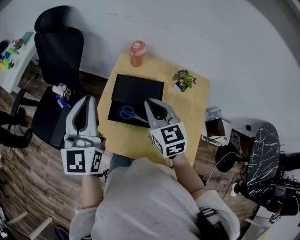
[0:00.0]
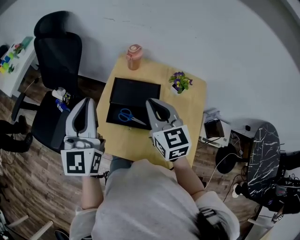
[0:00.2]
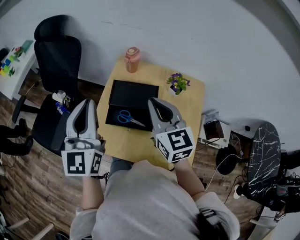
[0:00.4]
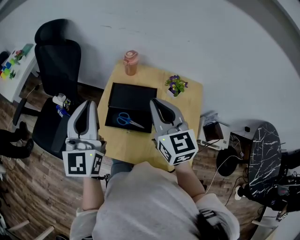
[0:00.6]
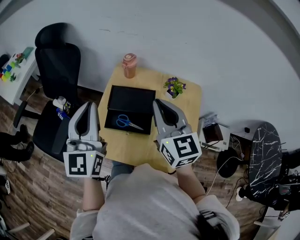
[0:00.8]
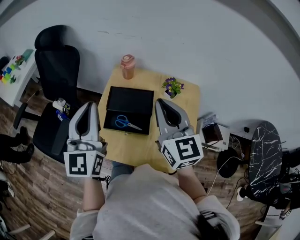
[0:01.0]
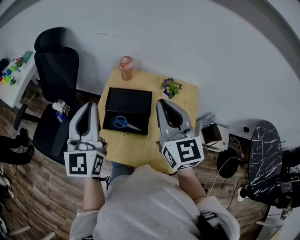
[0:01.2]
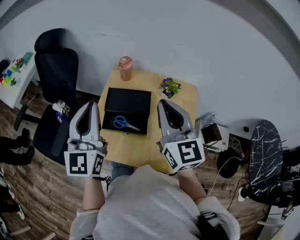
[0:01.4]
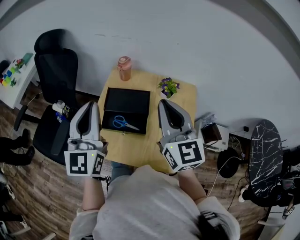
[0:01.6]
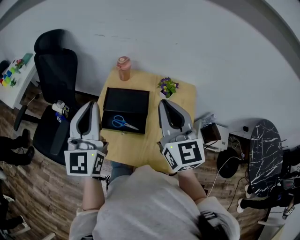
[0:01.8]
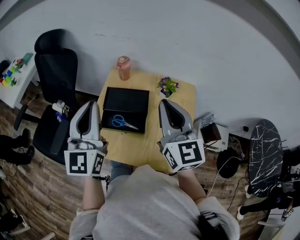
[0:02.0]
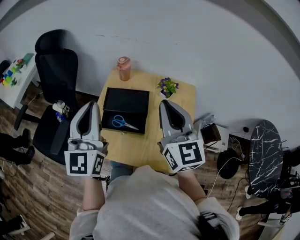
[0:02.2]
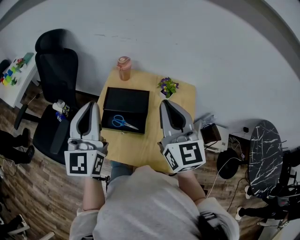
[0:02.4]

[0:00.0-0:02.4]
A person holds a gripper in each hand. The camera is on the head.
0.0 to 1.2 s: The left gripper shifts by roughly 5 cm, while the right gripper shifts roughly 15 cm upward, to the right and backward, and swivels approximately 20 degrees.
1.2 to 2.4 s: There are only small adjustments of the grippers.

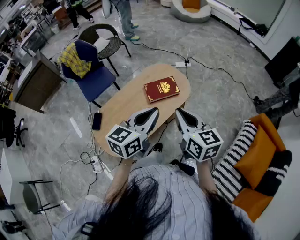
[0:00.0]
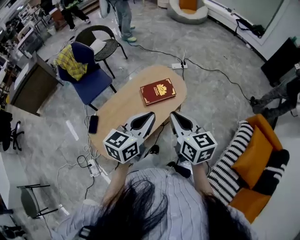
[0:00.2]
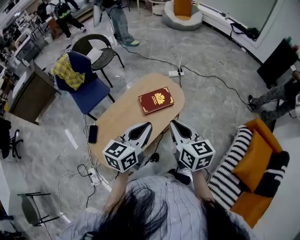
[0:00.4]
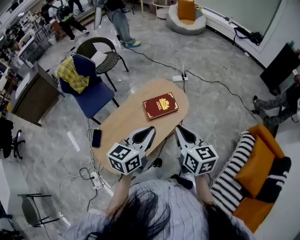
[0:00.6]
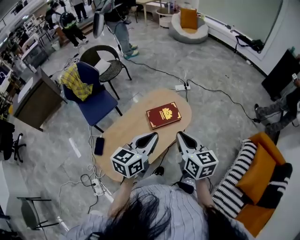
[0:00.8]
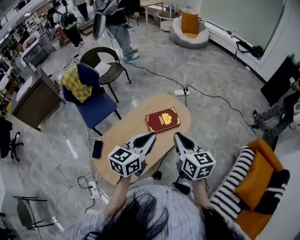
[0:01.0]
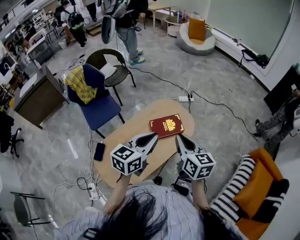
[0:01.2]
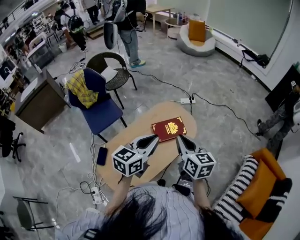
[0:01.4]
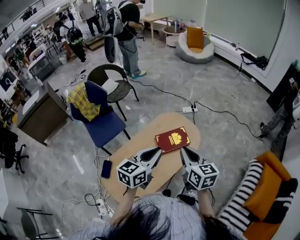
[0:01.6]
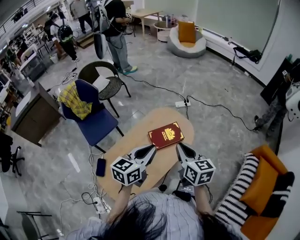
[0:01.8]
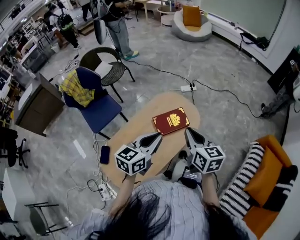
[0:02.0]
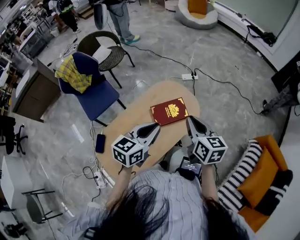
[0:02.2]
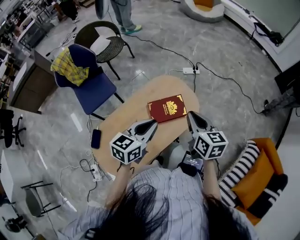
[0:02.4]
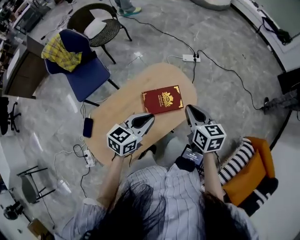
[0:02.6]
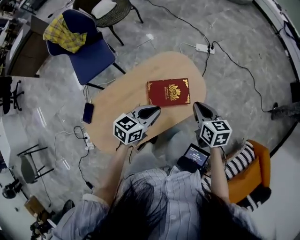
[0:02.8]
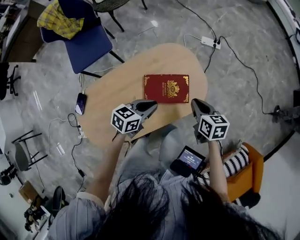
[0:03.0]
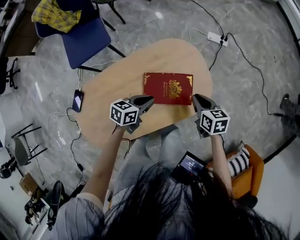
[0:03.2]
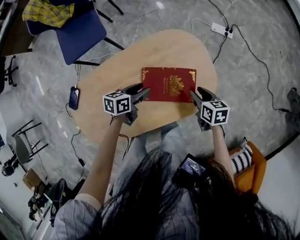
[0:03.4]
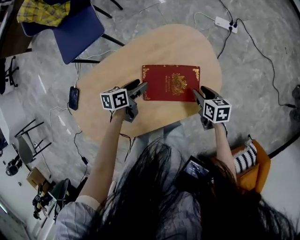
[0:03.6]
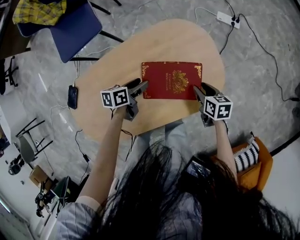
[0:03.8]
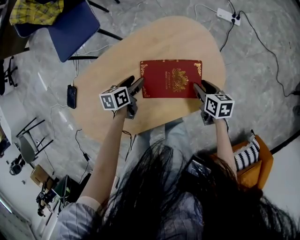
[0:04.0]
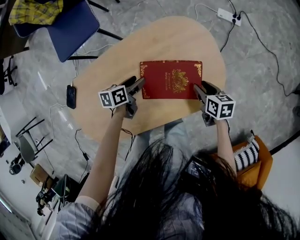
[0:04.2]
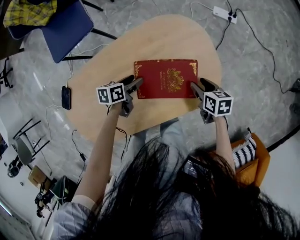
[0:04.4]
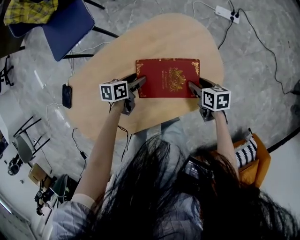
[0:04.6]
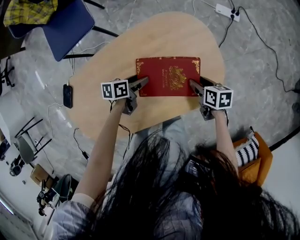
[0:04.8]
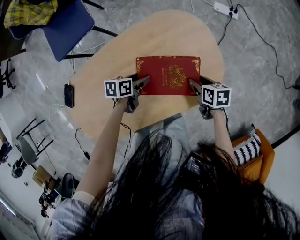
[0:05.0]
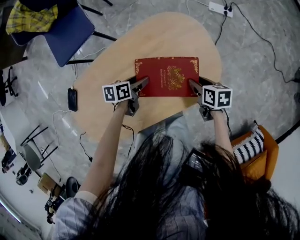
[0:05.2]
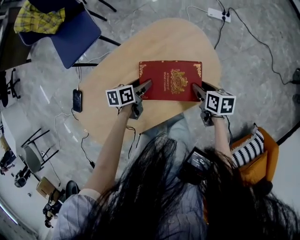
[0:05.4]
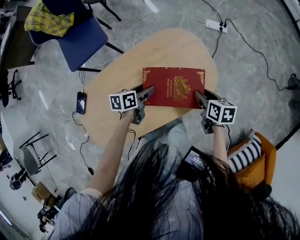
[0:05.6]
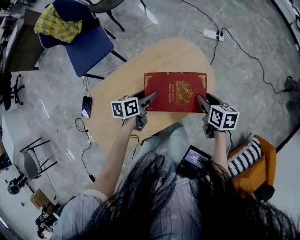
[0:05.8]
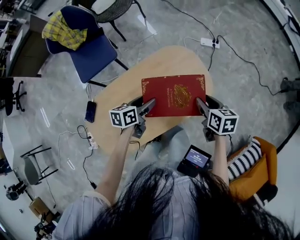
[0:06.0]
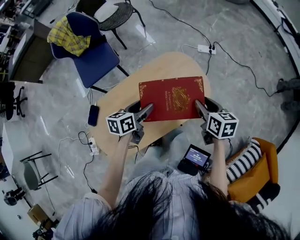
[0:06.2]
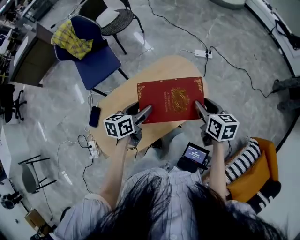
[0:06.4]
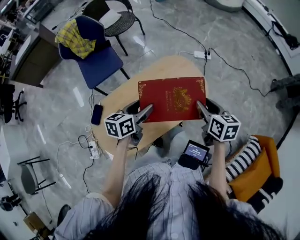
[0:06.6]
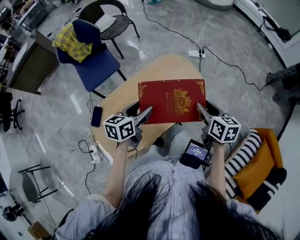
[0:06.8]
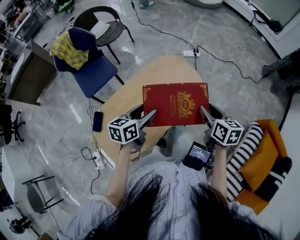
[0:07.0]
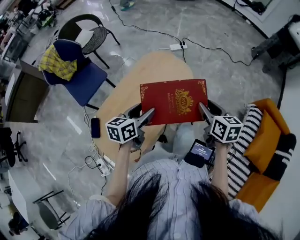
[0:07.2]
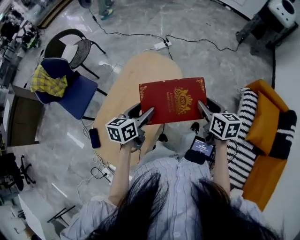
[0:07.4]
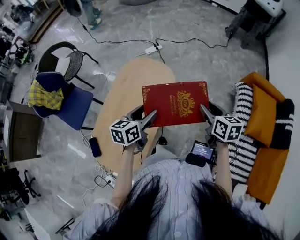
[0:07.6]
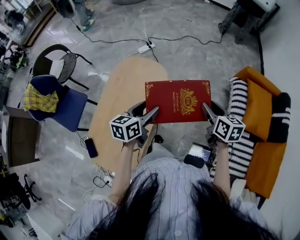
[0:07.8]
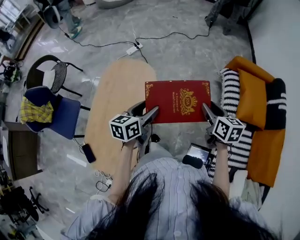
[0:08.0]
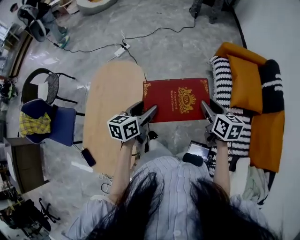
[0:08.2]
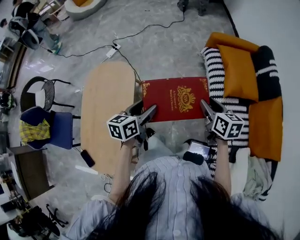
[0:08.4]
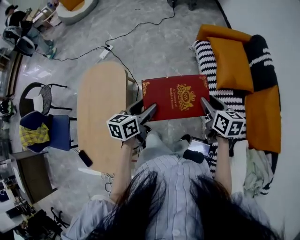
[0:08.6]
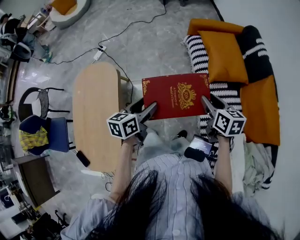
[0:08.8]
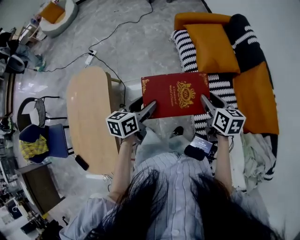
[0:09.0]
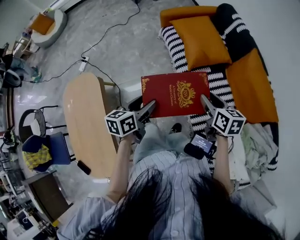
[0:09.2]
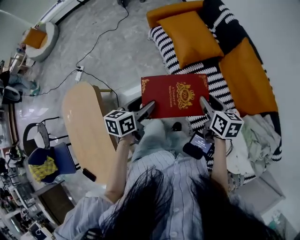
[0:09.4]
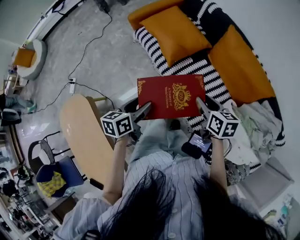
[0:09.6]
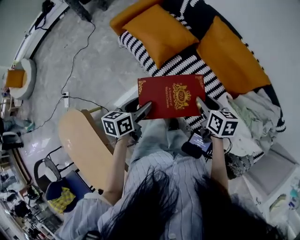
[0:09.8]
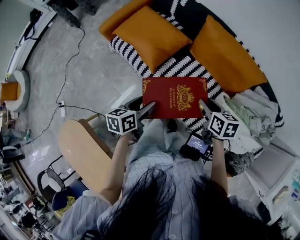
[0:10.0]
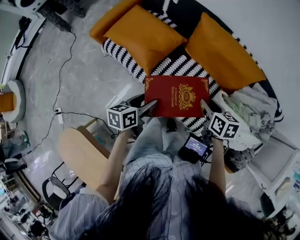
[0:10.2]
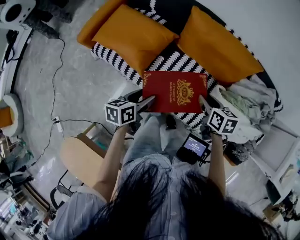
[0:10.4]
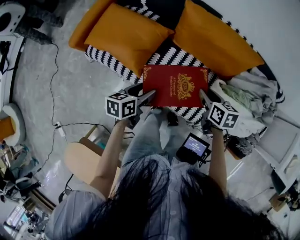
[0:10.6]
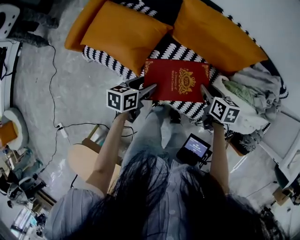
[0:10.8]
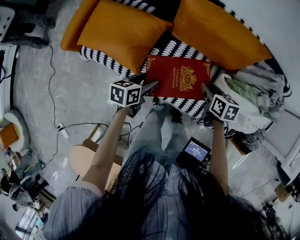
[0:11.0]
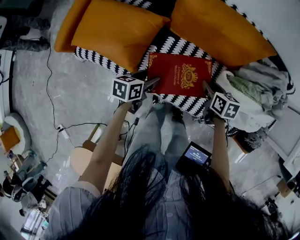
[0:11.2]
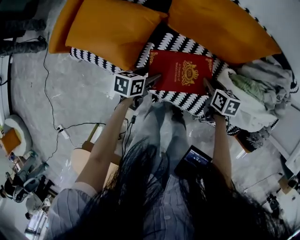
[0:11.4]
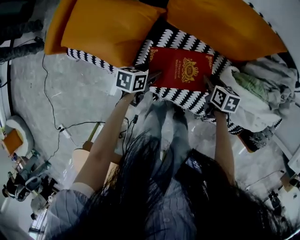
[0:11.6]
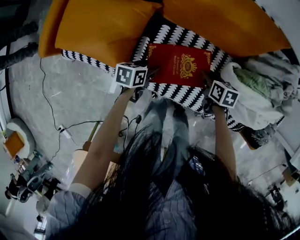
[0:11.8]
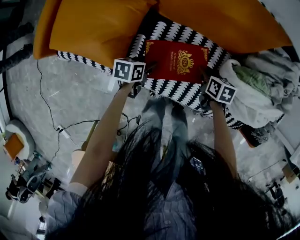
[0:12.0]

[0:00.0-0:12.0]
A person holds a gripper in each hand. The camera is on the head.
0.0 to 1.6 s: The two grippers go some 15 cm forward and to the left.
1.6 to 3.0 s: Both grippers move downward and forward, some 35 cm. The left gripper changes its angle by about 30 degrees, while the right gripper changes its angle by approximately 40 degrees.
3.0 to 4.4 s: The grippers both shift downward by approximately 25 cm. The left gripper swivels approximately 40 degrees, and opens its fingers; the right gripper opens up.
4.4 to 6.0 s: The two grippers go approximately 25 cm upward.
6.0 to 7.6 s: The right gripper changes place by some 35 cm, and rotates roughly 40 degrees, while the left gripper changes place by some 25 cm, and swivels some 40 degrees.
7.6 to 9.0 s: Both grippers are carried approximately 40 cm. The right gripper swivels some 30 degrees, while the left gripper rotates approximately 30 degrees.
9.0 to 10.4 s: The right gripper shifts by approximately 25 cm, and changes its angle by approximately 50 degrees. Meanwhile the left gripper shifts by approximately 35 cm, and turns by roughly 50 degrees.
10.4 to 12.0 s: The left gripper shifts approximately 30 cm downward and forward, and changes its angle by about 30 degrees, while the right gripper is displaced downward by approximately 25 cm, and rotates some 20 degrees.

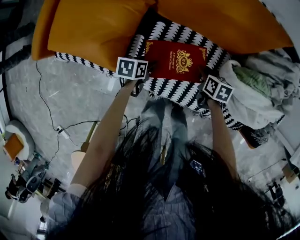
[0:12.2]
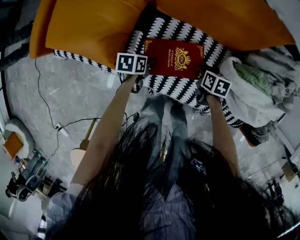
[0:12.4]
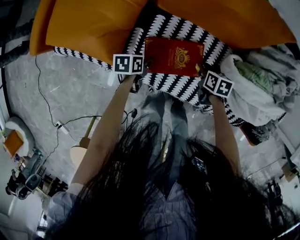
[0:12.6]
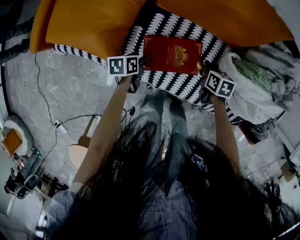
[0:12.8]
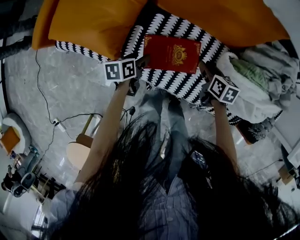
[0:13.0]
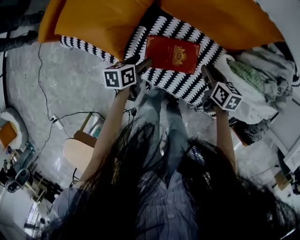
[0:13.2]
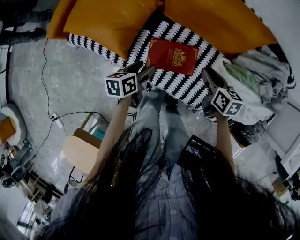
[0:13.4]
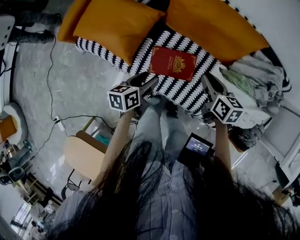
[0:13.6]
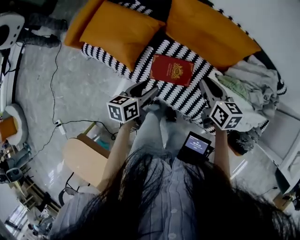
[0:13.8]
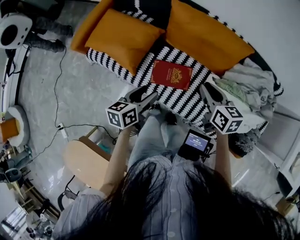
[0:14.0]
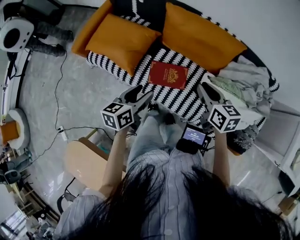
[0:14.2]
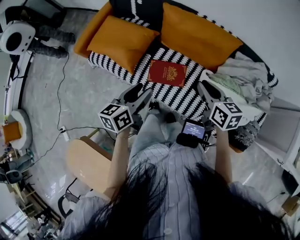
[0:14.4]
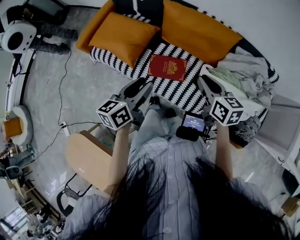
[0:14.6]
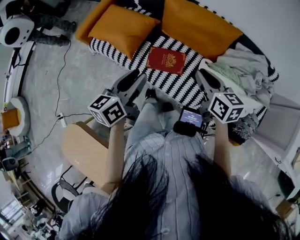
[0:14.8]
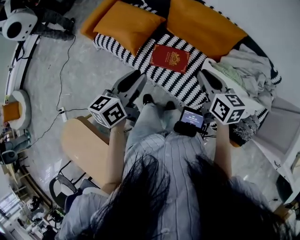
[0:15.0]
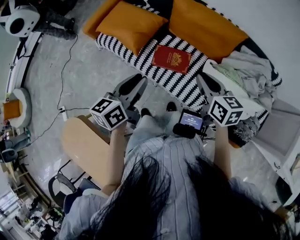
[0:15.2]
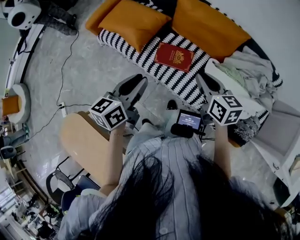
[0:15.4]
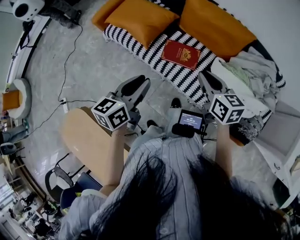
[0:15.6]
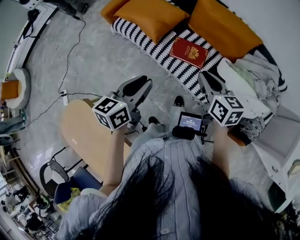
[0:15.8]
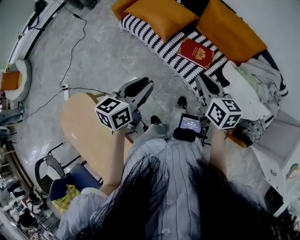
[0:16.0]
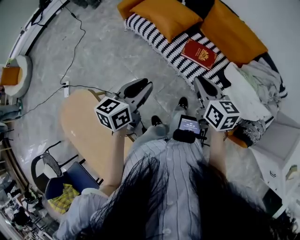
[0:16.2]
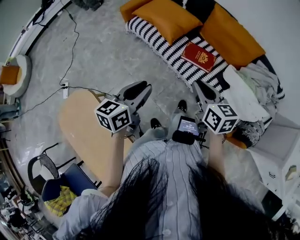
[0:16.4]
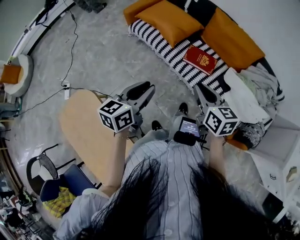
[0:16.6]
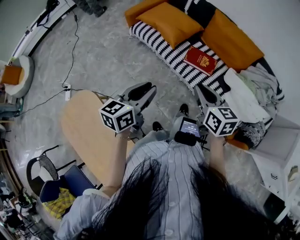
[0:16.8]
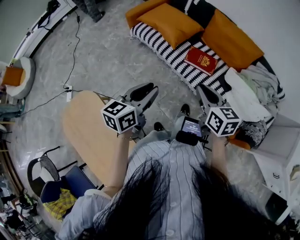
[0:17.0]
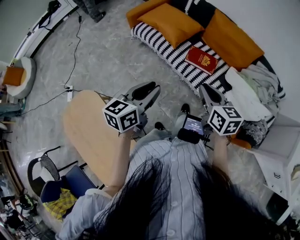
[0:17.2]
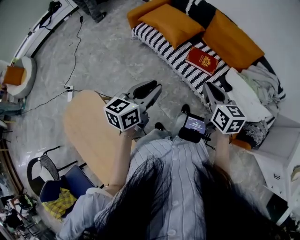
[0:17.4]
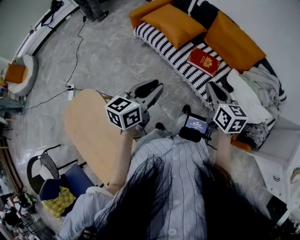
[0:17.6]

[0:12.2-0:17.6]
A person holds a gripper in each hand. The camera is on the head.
12.2 to 13.6 s: Both grippers travel together upward, some 25 cm. The left gripper swivels about 30 degrees; the right gripper swivels approximately 30 degrees.
13.6 to 15.0 s: The grippers both shift upward and backward by about 25 cm. The left gripper changes its angle by about 30 degrees, and closes.
15.0 to 16.2 s: The left gripper goes some 25 cm backward and to the left. The right gripper goes roughly 25 cm to the left and backward.
16.2 to 17.6 s: Both grippers move backward, some 5 cm.

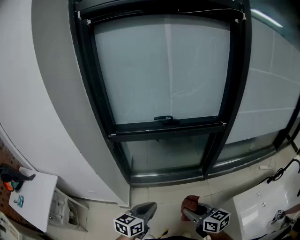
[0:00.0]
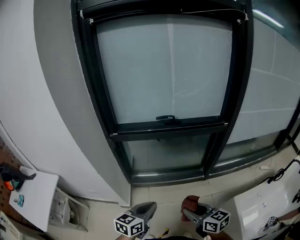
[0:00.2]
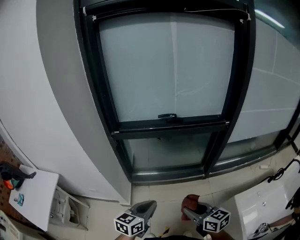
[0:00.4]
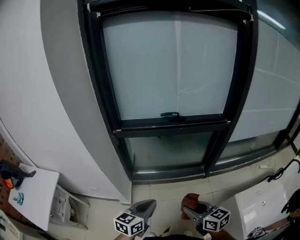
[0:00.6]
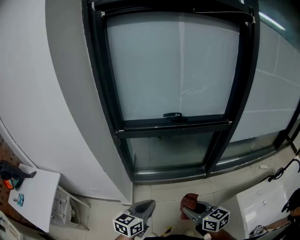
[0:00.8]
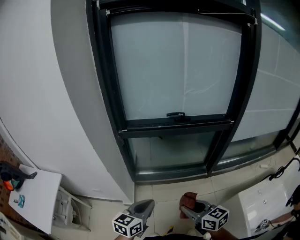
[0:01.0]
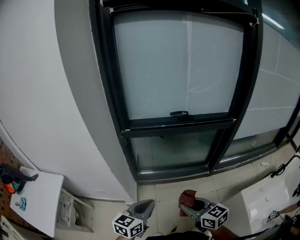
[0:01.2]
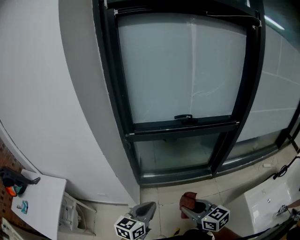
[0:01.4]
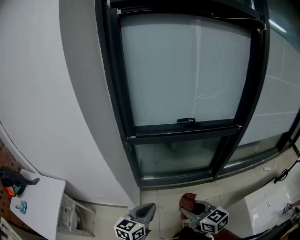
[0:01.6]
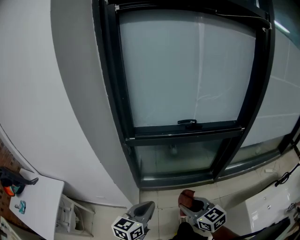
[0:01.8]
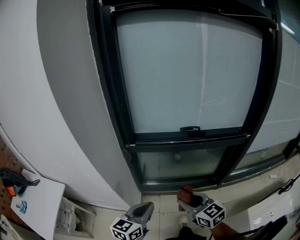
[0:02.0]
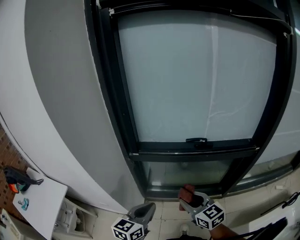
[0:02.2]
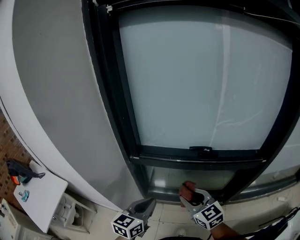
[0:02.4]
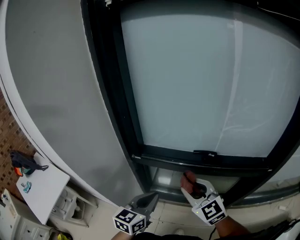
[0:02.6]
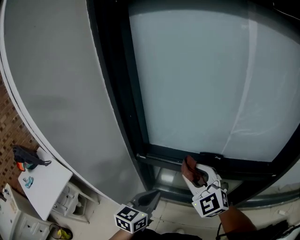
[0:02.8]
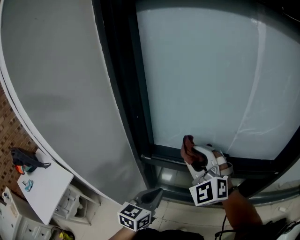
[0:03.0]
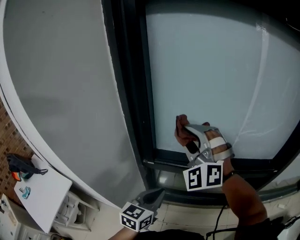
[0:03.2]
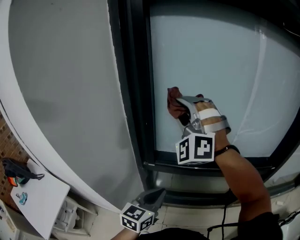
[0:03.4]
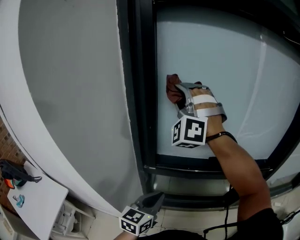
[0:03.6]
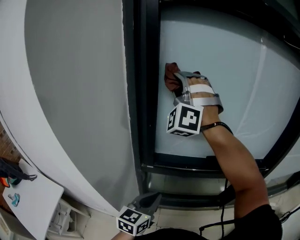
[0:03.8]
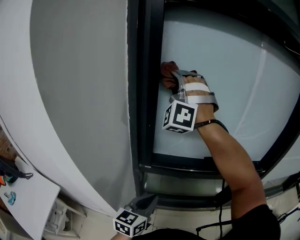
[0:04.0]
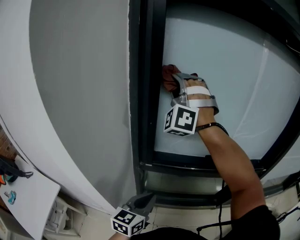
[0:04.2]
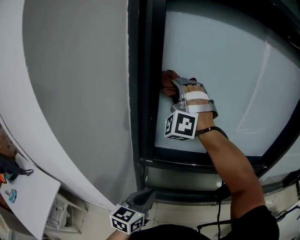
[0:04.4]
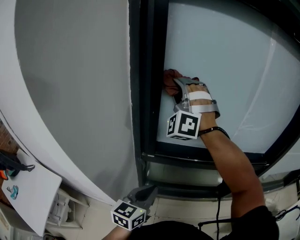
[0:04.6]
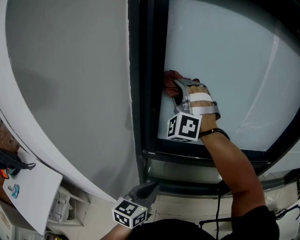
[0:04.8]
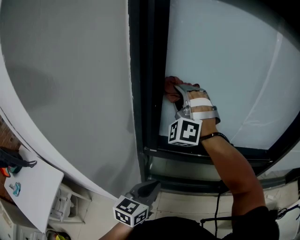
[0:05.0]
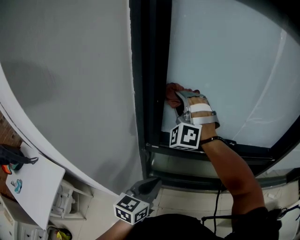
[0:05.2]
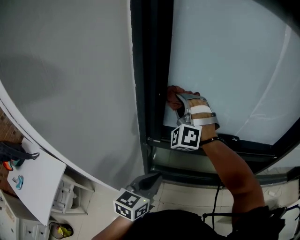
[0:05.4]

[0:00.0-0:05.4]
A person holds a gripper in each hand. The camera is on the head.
0.0 to 1.4 s: The left gripper moves about 15 cm.
1.4 to 2.8 s: The left gripper moves roughly 30 cm.
2.8 to 4.0 s: The left gripper shifts by about 10 cm.
